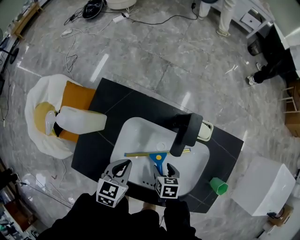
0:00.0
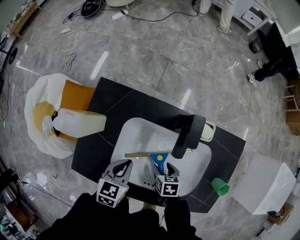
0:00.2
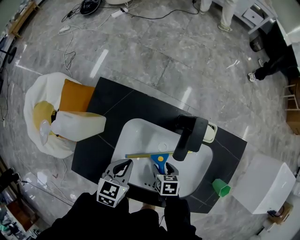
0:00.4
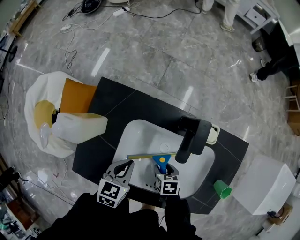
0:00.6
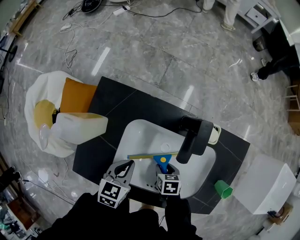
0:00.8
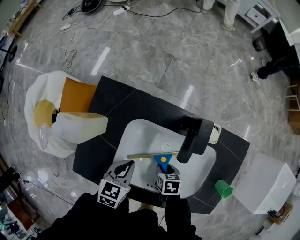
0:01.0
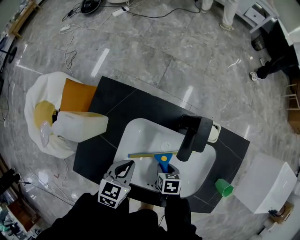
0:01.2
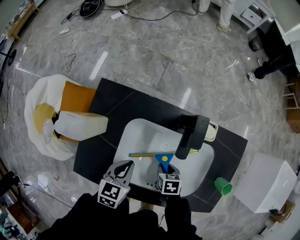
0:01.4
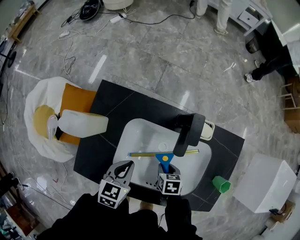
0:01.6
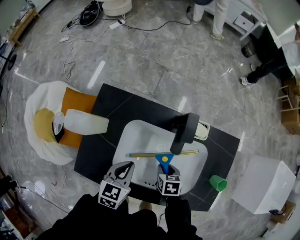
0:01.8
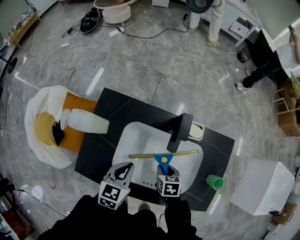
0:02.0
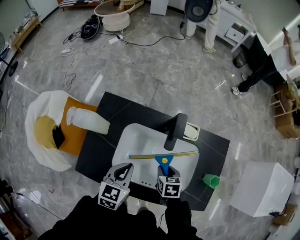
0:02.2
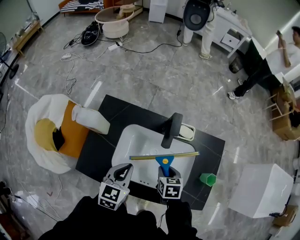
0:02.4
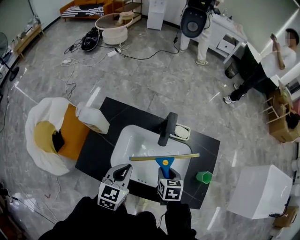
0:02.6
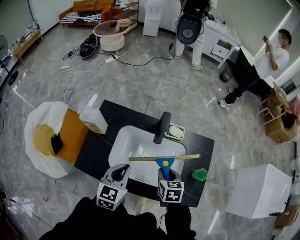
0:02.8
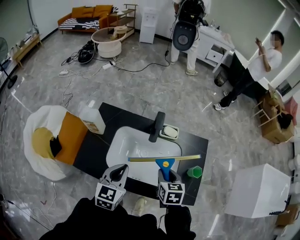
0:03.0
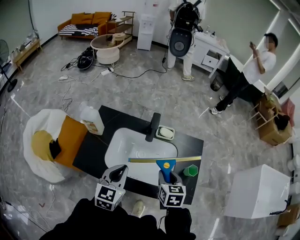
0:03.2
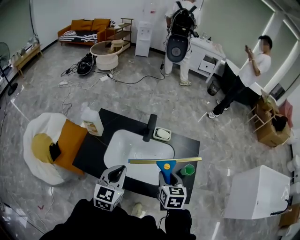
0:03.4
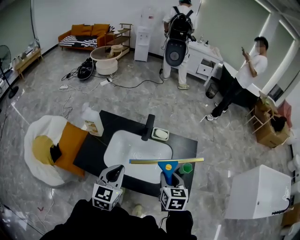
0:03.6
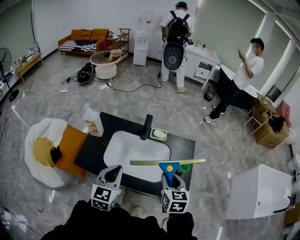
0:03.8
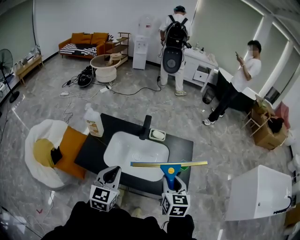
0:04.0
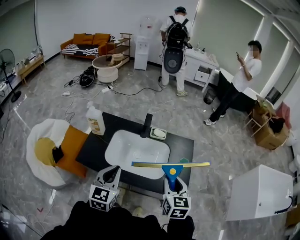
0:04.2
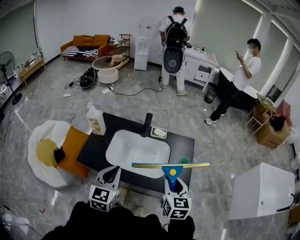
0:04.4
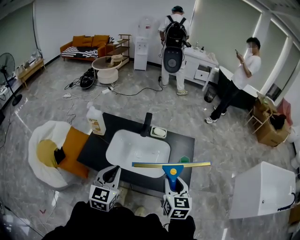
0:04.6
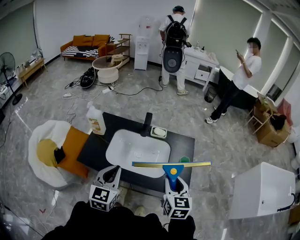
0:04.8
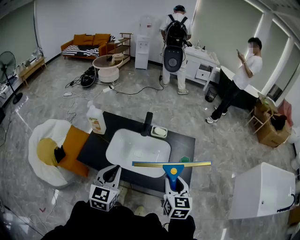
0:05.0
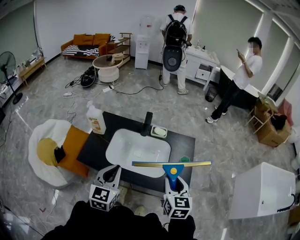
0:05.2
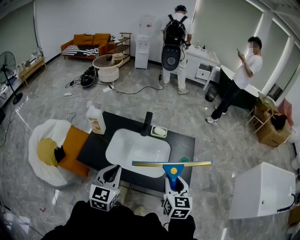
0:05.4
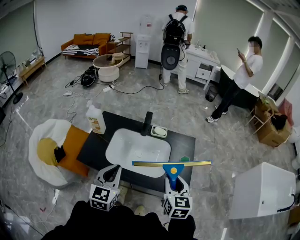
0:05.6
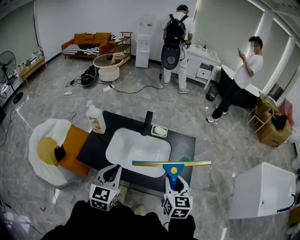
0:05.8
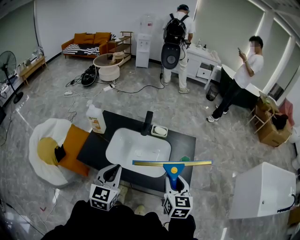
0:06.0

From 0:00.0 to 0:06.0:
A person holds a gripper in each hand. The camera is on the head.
From 0:00.0 to 0:01.6: The right gripper closes up.
From 0:01.6 to 0:03.0: The left gripper moves upward and backward, approximately 25 cm, and changes its angle by approximately 20 degrees. The right gripper heads upward, covering roughly 25 cm, and rotates roughly 30 degrees.
From 0:03.0 to 0:04.4: The left gripper heads backward and upward, covering some 20 cm. The right gripper goes approximately 25 cm backward, upward and to the right, and rotates some 20 degrees.
From 0:04.4 to 0:06.0: Neither gripper changes place.

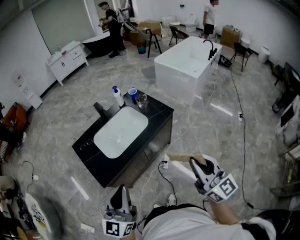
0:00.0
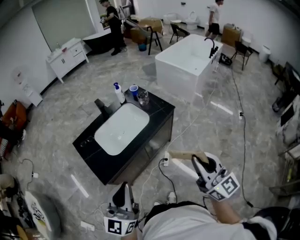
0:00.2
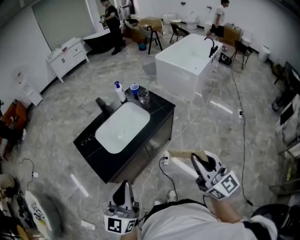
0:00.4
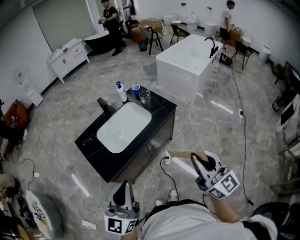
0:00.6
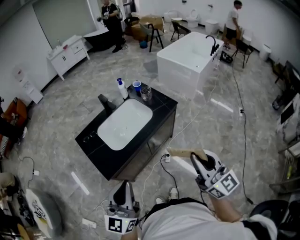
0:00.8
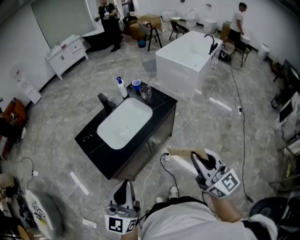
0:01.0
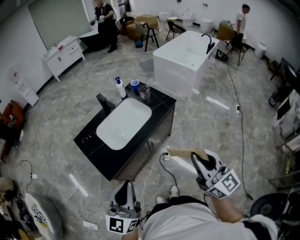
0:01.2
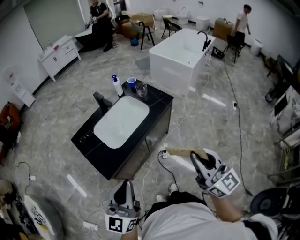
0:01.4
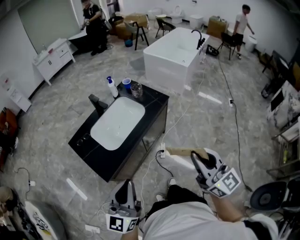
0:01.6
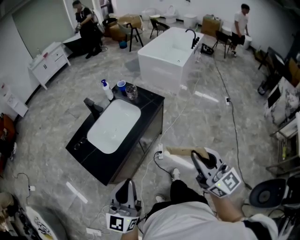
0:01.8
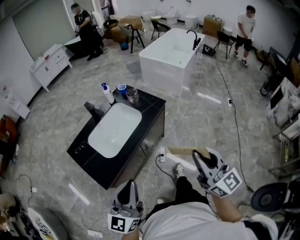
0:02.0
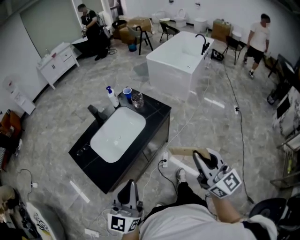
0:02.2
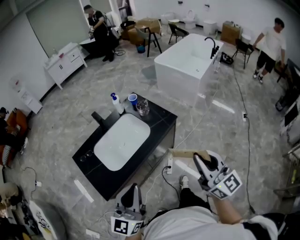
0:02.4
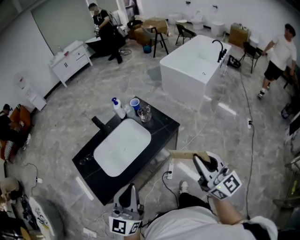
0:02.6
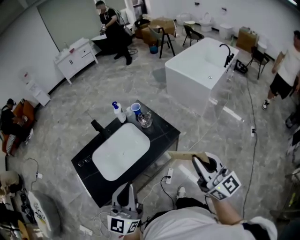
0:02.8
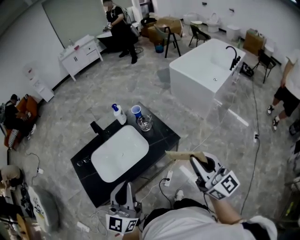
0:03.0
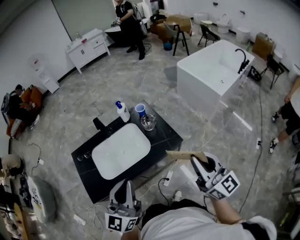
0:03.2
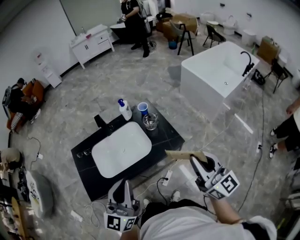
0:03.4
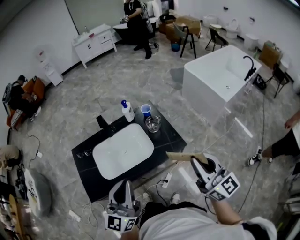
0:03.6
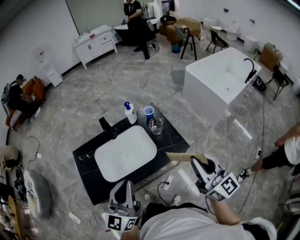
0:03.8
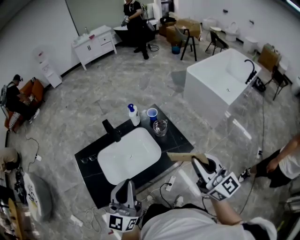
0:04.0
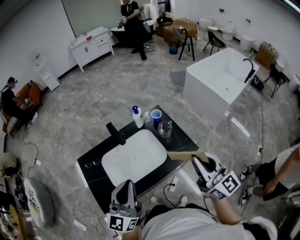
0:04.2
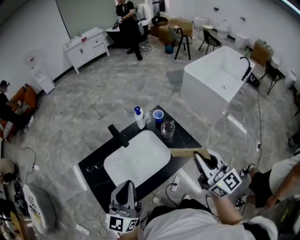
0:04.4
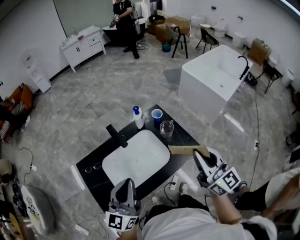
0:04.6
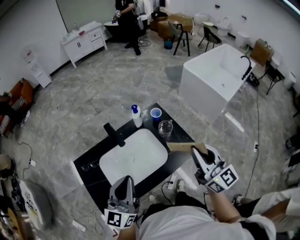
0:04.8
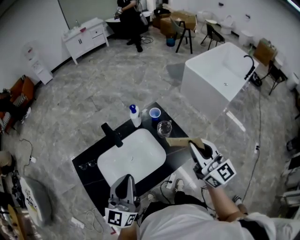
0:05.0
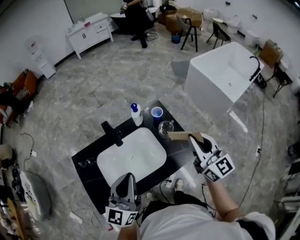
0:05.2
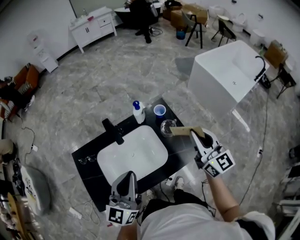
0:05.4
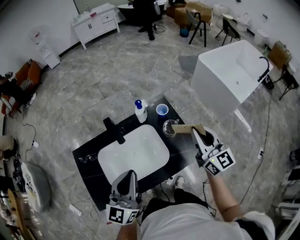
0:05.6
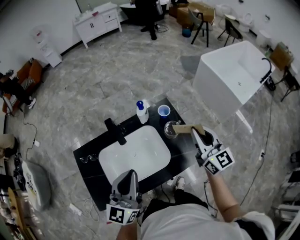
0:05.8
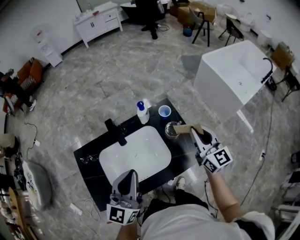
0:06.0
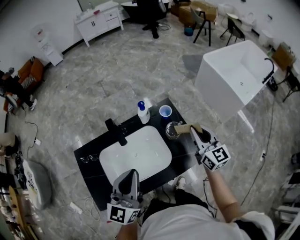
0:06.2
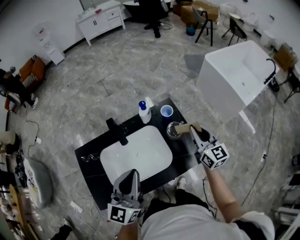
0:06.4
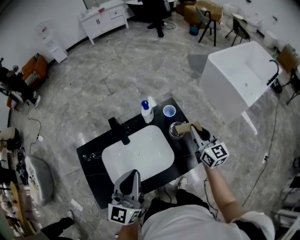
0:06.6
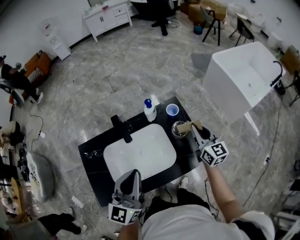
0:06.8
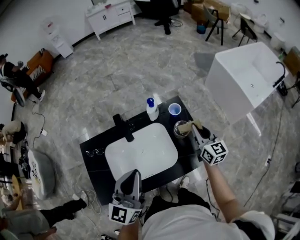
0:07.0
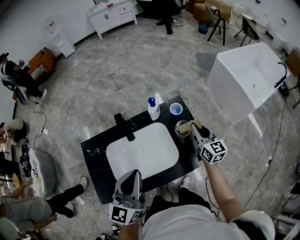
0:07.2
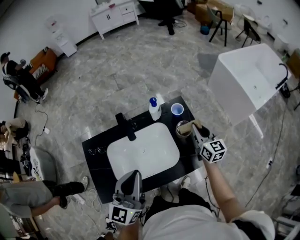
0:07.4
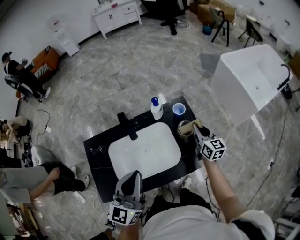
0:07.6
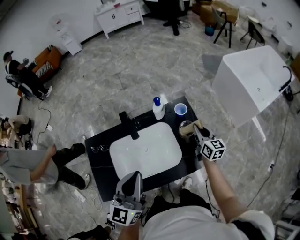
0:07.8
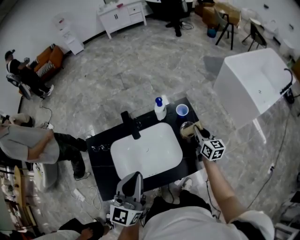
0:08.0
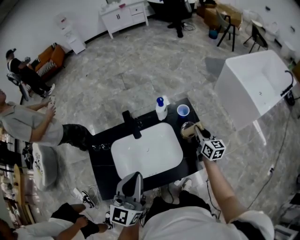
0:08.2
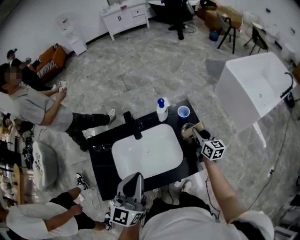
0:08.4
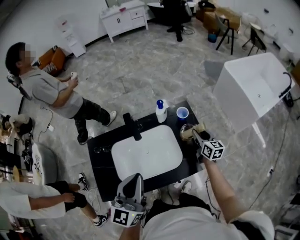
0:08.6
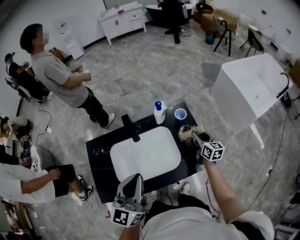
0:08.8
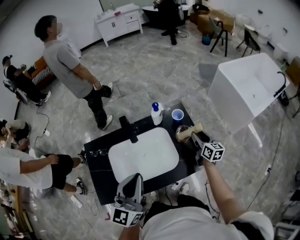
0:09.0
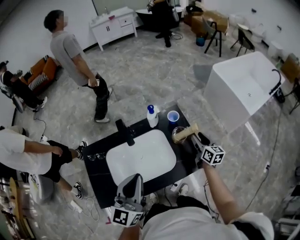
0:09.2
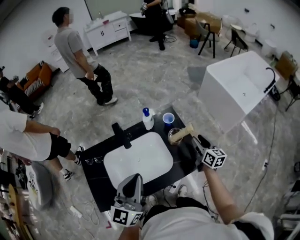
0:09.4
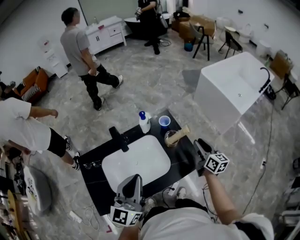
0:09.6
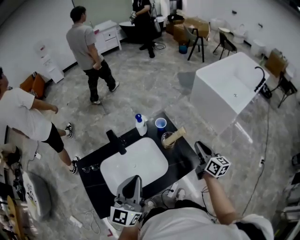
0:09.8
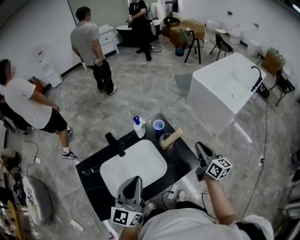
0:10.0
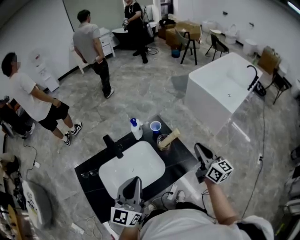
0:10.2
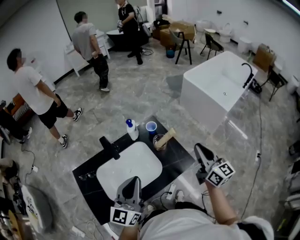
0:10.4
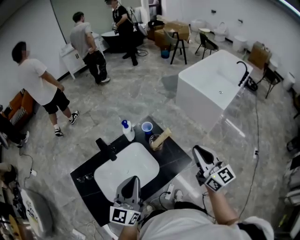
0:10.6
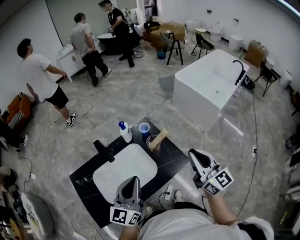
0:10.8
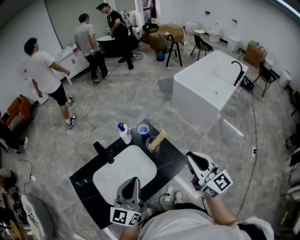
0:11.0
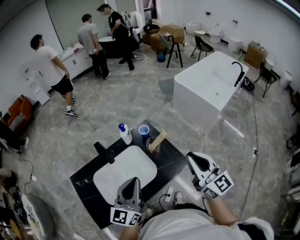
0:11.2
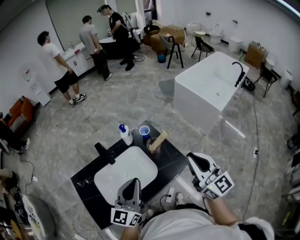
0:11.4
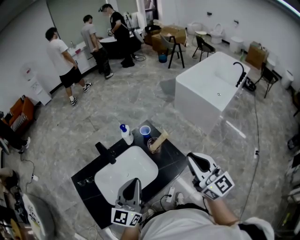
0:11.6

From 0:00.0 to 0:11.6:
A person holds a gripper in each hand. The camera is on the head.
From 0:00.0 to 0:01.4: The left gripper changes place by about 5 cm. The right gripper moves to the left, about 5 cm.
From 0:01.4 to 0:02.8: Both grippers move forward and to the right, some 25 cm.
From 0:02.8 to 0:04.4: The two grippers go some 15 cm forward and to the left.
From 0:04.4 to 0:05.8: The left gripper goes some 10 cm forward and to the right. The right gripper travels forward by approximately 20 cm.
From 0:05.8 to 0:07.2: The right gripper travels downward and forward by about 15 cm.
From 0:07.2 to 0:08.8: The right gripper shifts some 10 cm downward, and opens its fingers.
From 0:08.8 to 0:10.2: The right gripper travels upward and backward by some 20 cm, rotates approximately 20 degrees, and closes up.
From 0:10.2 to 0:11.6: The right gripper shifts about 15 cm upward and backward, and rotates approximately 20 degrees.

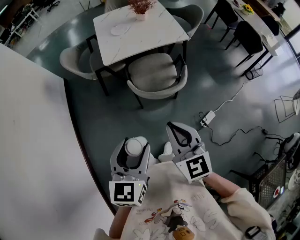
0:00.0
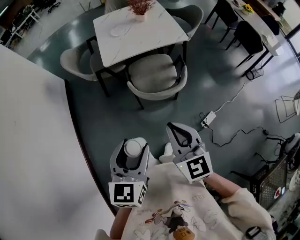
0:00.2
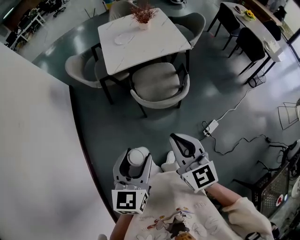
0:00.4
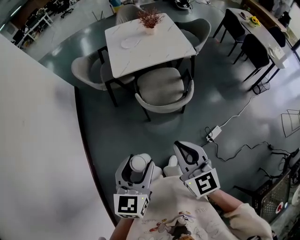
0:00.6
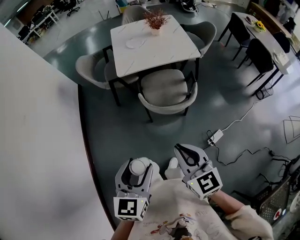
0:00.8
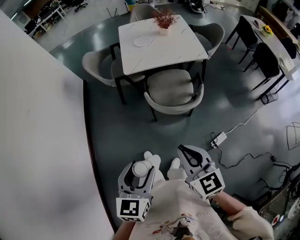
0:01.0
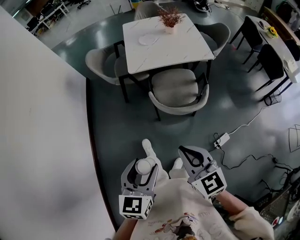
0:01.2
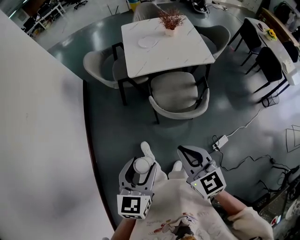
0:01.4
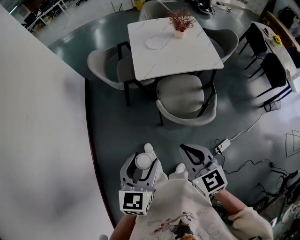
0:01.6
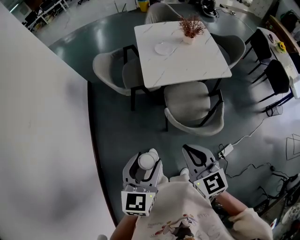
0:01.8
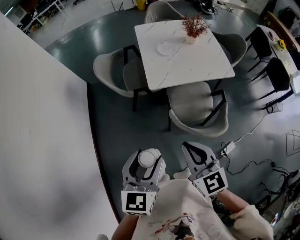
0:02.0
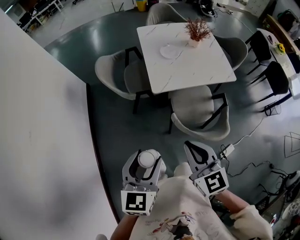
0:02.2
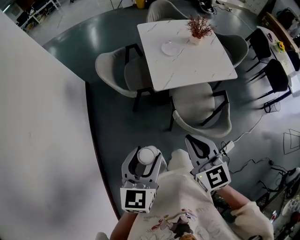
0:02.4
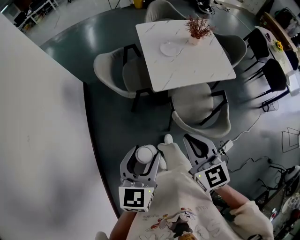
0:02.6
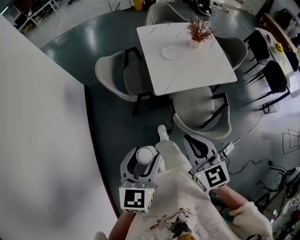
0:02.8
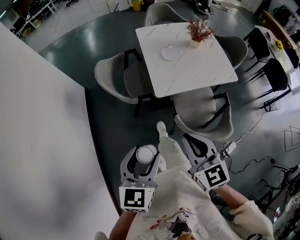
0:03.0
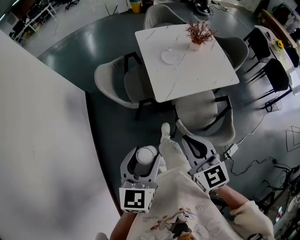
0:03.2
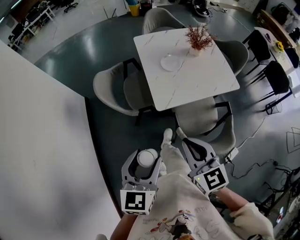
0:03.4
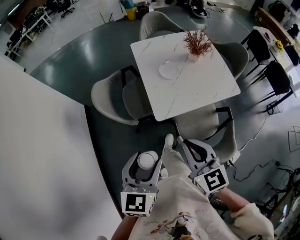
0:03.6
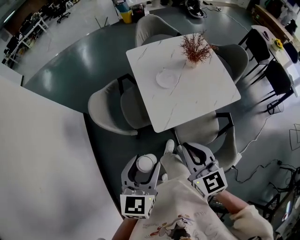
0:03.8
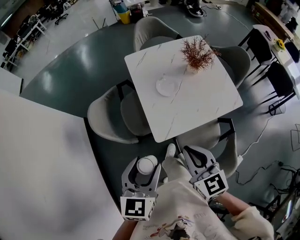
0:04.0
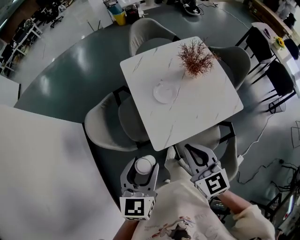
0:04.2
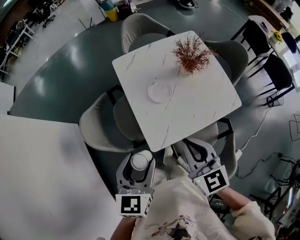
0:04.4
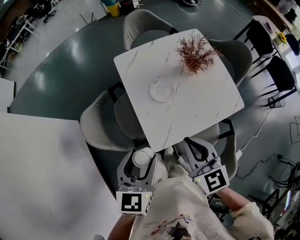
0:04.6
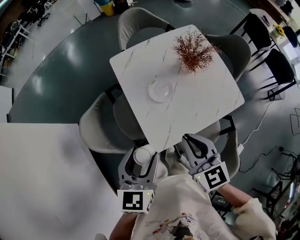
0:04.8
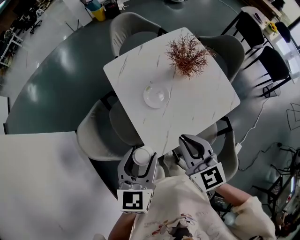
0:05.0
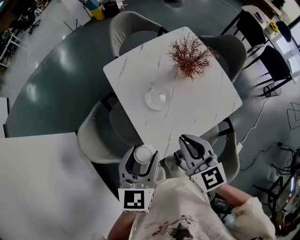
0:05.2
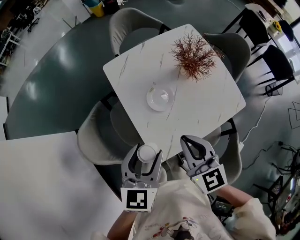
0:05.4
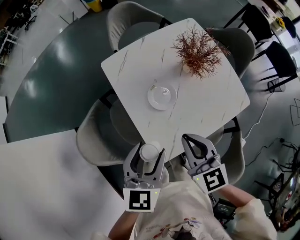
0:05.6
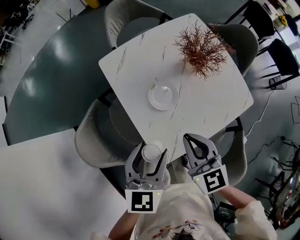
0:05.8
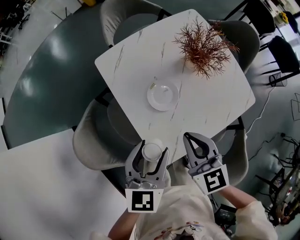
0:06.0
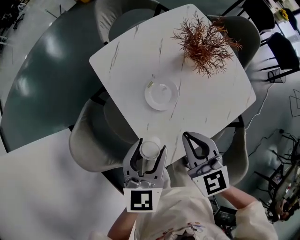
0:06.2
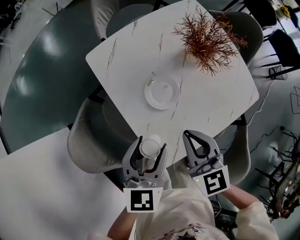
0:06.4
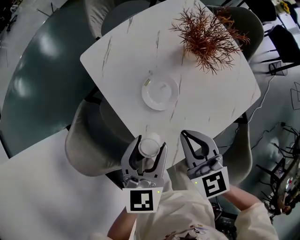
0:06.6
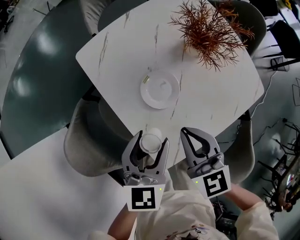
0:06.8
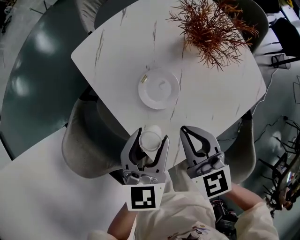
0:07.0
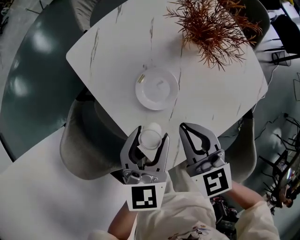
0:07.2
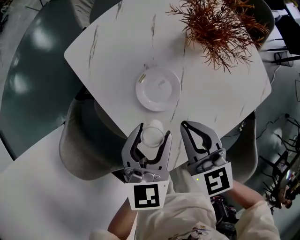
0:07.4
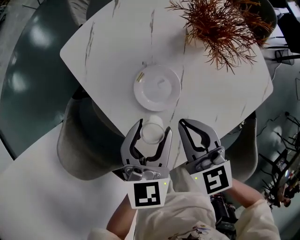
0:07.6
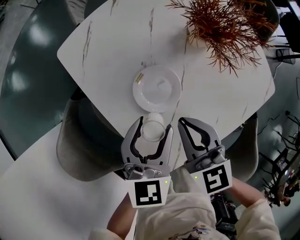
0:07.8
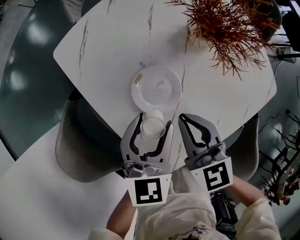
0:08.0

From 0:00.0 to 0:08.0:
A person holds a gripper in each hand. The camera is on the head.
From 0:00.0 to 0:01.6: The two grippers go roughly 10 cm forward and to the left.
From 0:01.6 to 0:03.2: The grippers both shift forward and to the left by approximately 25 cm.
From 0:03.2 to 0:04.8: Both grippers travel together forward, some 35 cm.
From 0:04.8 to 0:06.4: Both grippers move forward and downward, roughly 20 cm.
From 0:06.4 to 0:08.0: The two grippers go roughly 15 cm downward and forward.
